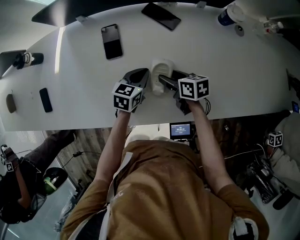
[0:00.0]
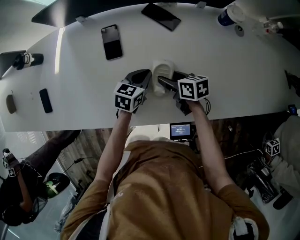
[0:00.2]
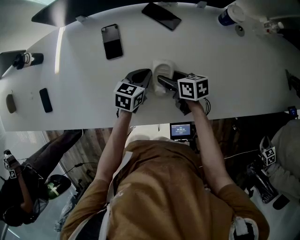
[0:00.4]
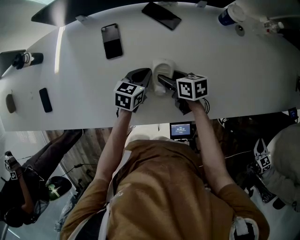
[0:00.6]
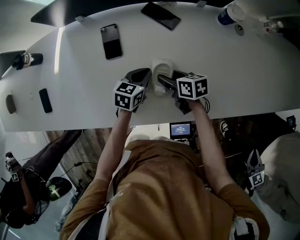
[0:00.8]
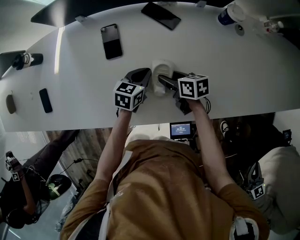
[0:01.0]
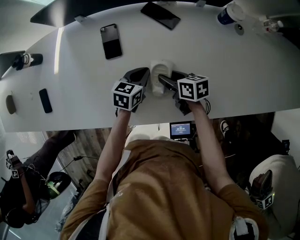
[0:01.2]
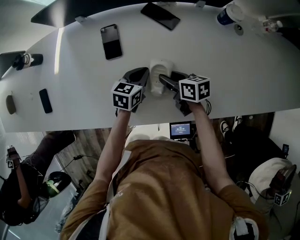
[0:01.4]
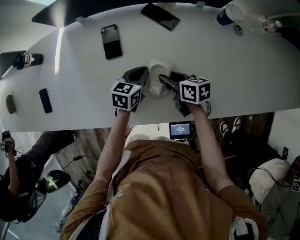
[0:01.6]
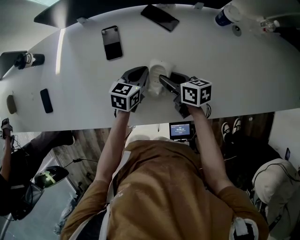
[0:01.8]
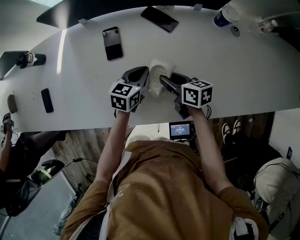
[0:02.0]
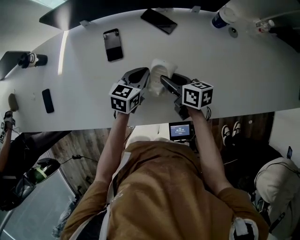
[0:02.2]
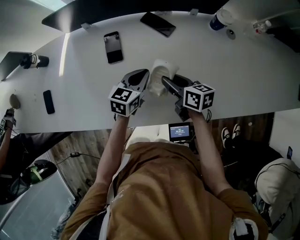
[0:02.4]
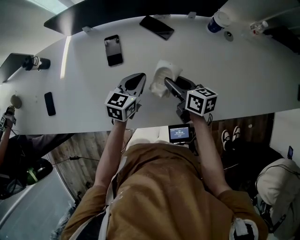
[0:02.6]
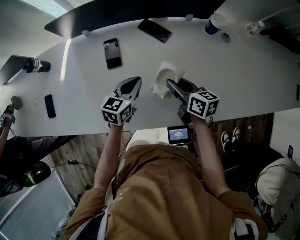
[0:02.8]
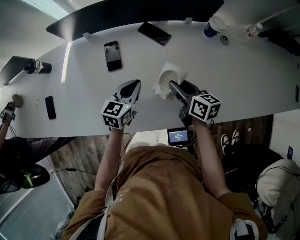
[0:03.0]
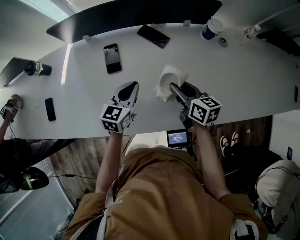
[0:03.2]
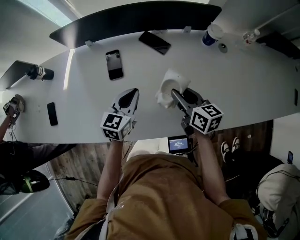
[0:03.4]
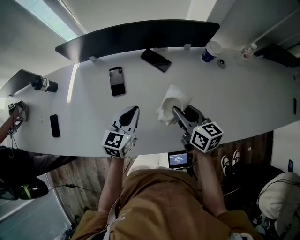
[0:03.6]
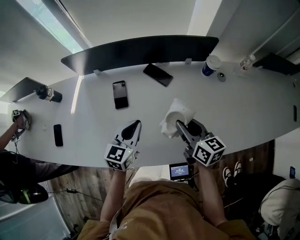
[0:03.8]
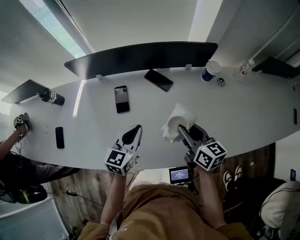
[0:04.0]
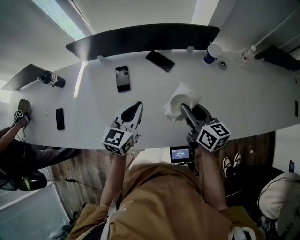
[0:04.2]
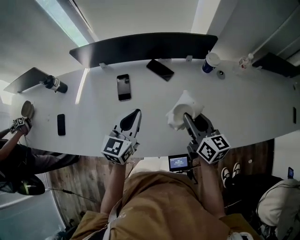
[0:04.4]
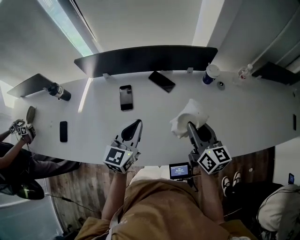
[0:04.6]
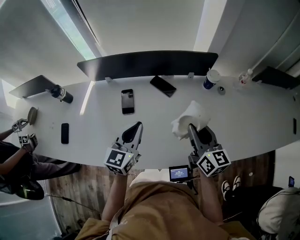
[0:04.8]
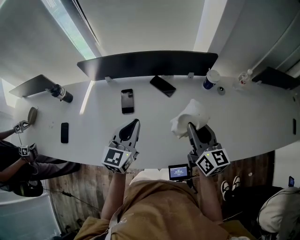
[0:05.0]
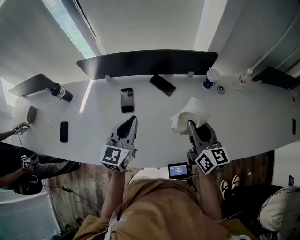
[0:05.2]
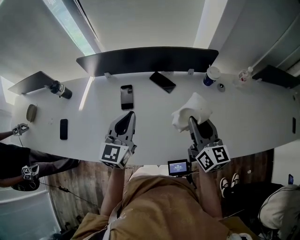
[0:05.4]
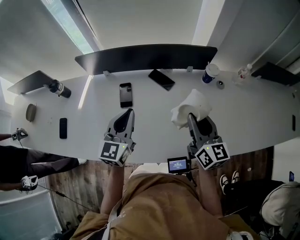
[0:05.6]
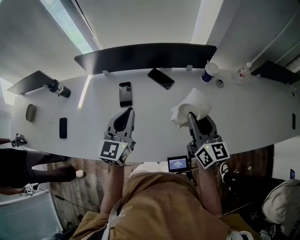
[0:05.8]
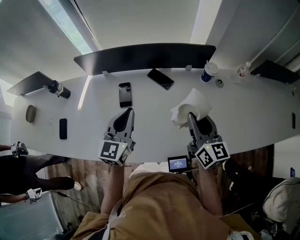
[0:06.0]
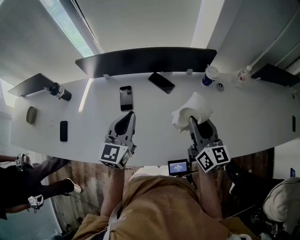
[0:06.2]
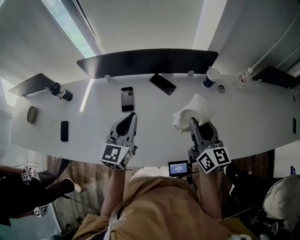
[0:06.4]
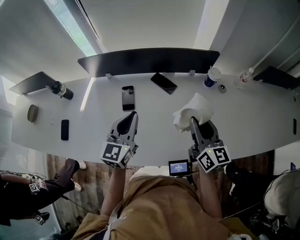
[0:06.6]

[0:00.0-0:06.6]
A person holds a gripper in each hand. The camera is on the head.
0:00.0 to 0:01.6: The right gripper closes its fingers.
0:01.6 to 0:03.2: The left gripper shifts about 10 cm upward; the right gripper heads upward and to the right, covering roughly 10 cm, and swivels approximately 20 degrees.
0:03.2 to 0:05.0: The two grippers go roughly 15 cm upward. The right gripper turns by roughly 30 degrees.
0:05.0 to 0:06.6: The grippers make only small movements.

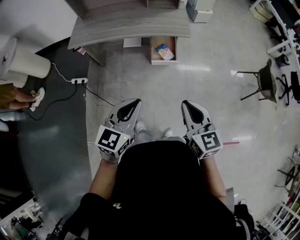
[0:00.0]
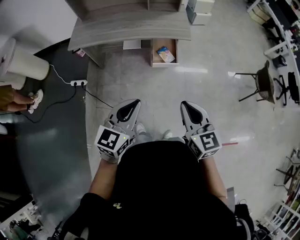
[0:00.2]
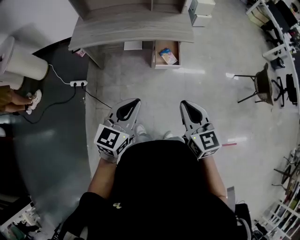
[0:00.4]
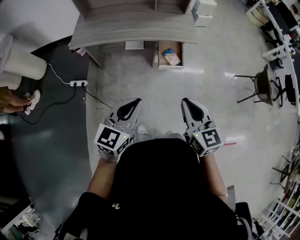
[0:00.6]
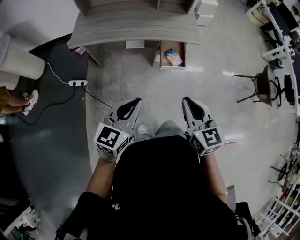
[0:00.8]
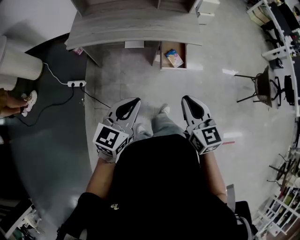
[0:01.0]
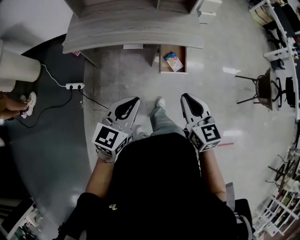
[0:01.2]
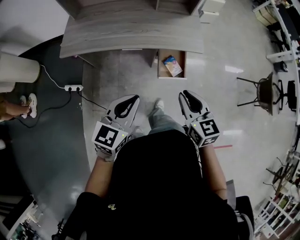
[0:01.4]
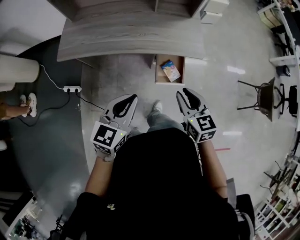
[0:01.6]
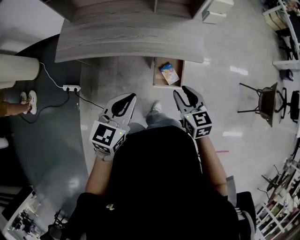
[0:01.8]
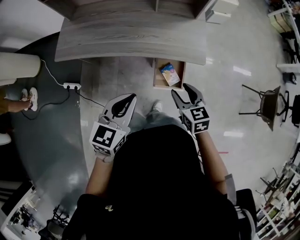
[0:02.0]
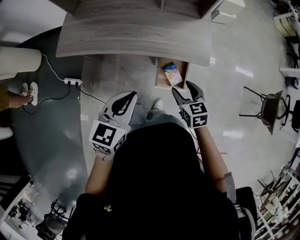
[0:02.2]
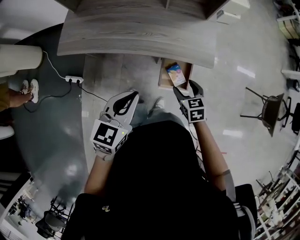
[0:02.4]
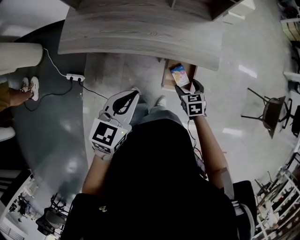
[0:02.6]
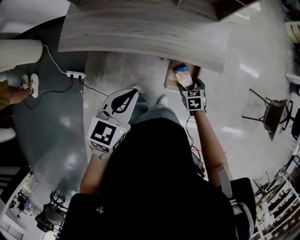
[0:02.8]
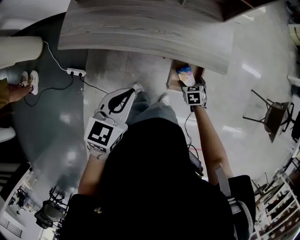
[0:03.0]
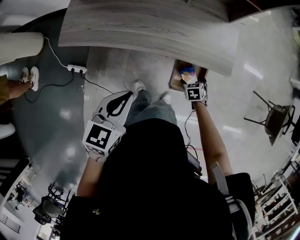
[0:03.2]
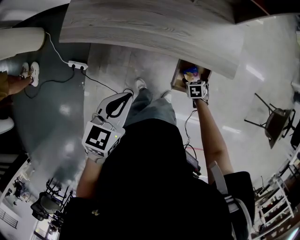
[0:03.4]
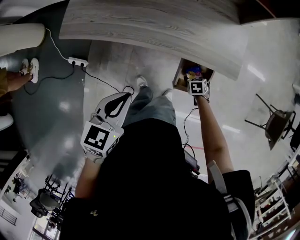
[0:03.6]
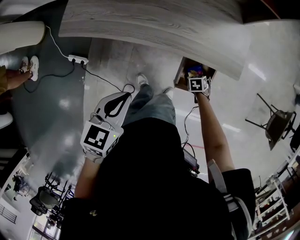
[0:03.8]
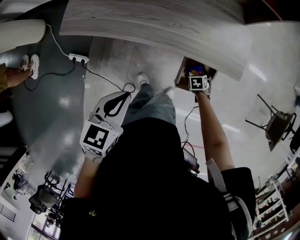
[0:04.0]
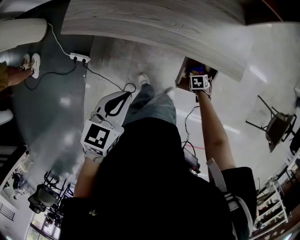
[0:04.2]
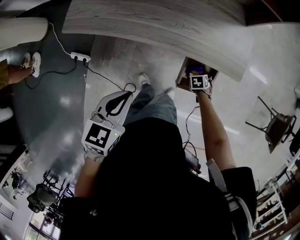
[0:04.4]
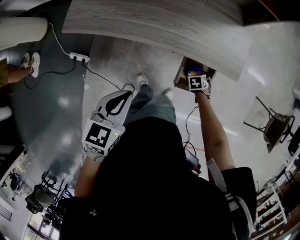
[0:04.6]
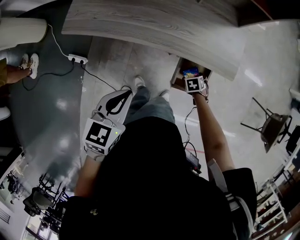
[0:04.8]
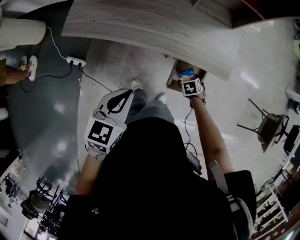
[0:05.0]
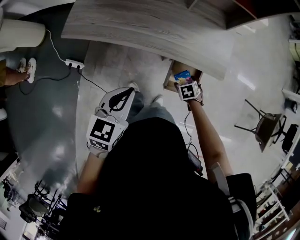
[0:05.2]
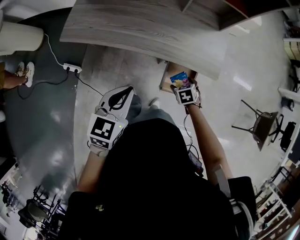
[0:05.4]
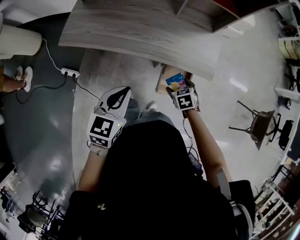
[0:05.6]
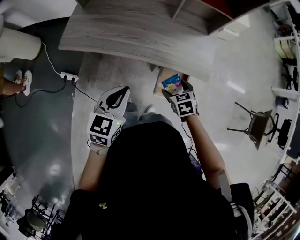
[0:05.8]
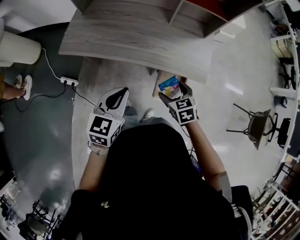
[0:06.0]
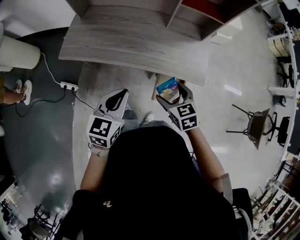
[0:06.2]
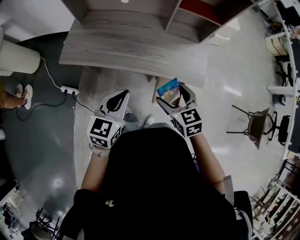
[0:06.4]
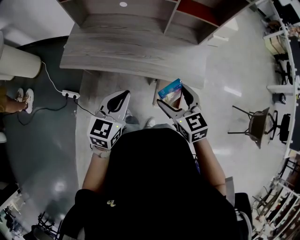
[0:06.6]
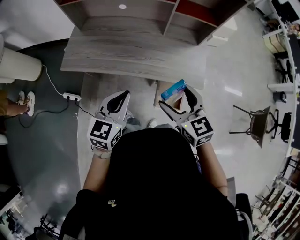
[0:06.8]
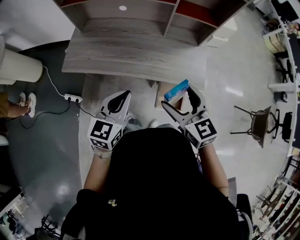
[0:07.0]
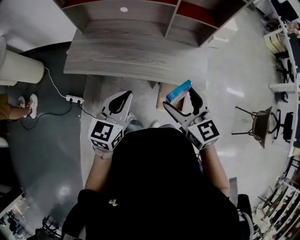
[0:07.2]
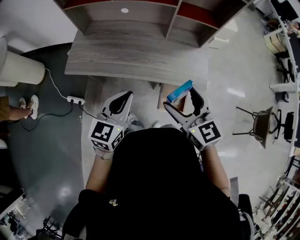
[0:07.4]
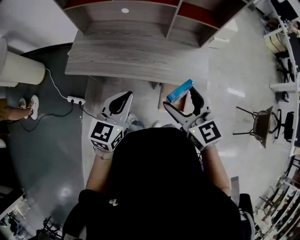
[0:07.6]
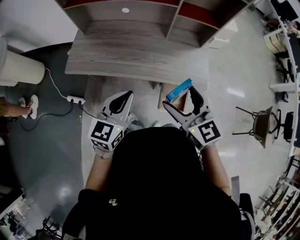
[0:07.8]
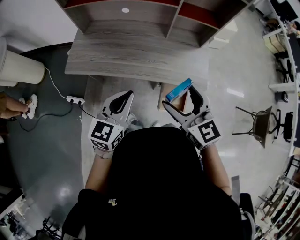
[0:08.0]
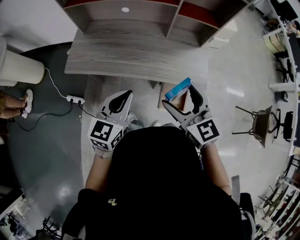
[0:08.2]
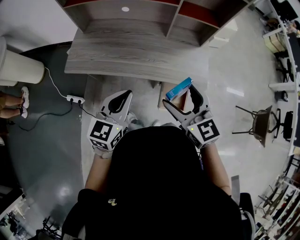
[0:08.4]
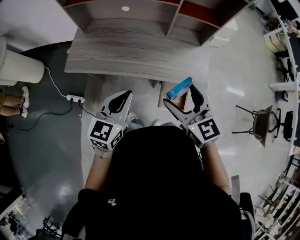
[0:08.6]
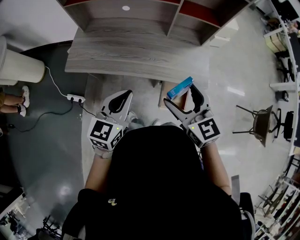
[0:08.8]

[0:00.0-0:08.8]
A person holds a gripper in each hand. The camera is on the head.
0:00.0 to 0:01.4: Both grippers travel together forward and to the left, approximately 25 cm.
0:01.4 to 0:03.0: The left gripper is displaced forward and downward by some 20 cm. The right gripper goes approximately 40 cm downward and forward, points its fingers some 40 degrees further downward, and opens.
0:03.0 to 0:04.4: The right gripper heads downward, covering roughly 10 cm; the left gripper heads downward, covering about 5 cm.
0:04.4 to 0:05.8: The right gripper travels upward by some 25 cm, and rotates some 30 degrees, while the left gripper travels upward by roughly 5 cm.
0:05.8 to 0:07.4: The right gripper travels upward by about 30 cm, and points its fingers about 40 degrees further upward; the left gripper heads upward, covering roughly 5 cm.
0:07.4 to 0:08.8: The two grippers keep their place.

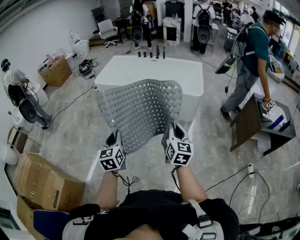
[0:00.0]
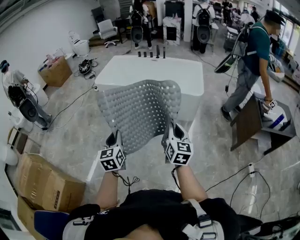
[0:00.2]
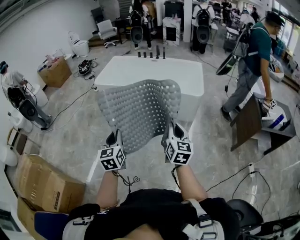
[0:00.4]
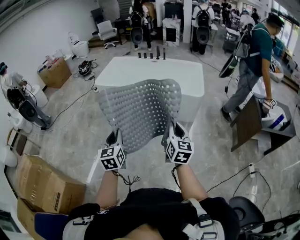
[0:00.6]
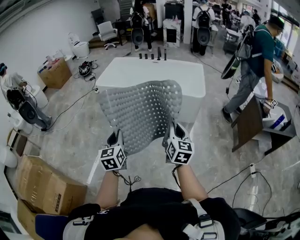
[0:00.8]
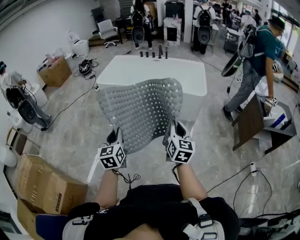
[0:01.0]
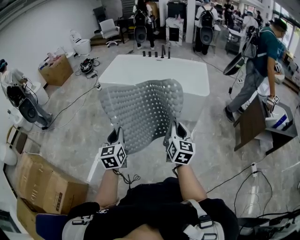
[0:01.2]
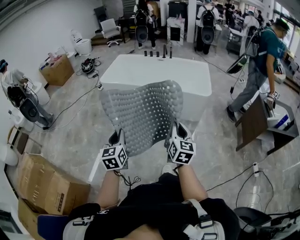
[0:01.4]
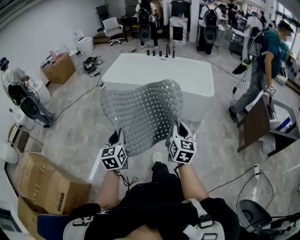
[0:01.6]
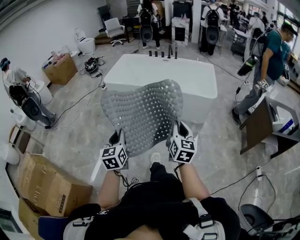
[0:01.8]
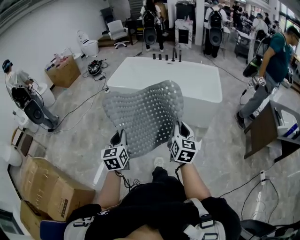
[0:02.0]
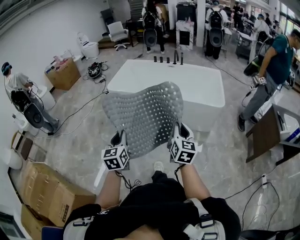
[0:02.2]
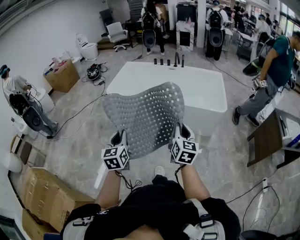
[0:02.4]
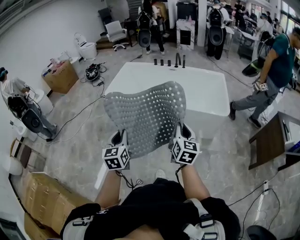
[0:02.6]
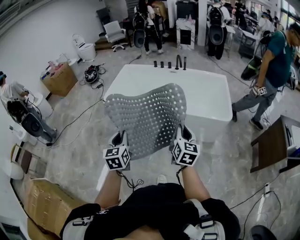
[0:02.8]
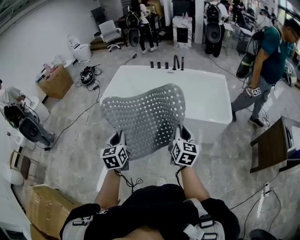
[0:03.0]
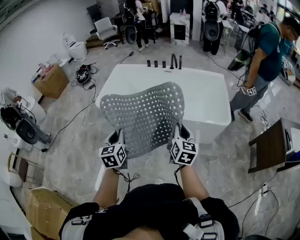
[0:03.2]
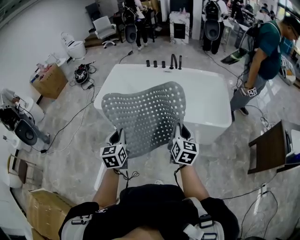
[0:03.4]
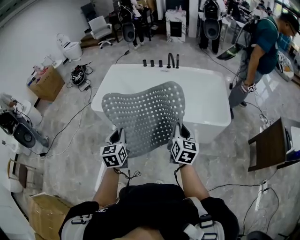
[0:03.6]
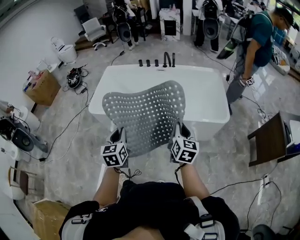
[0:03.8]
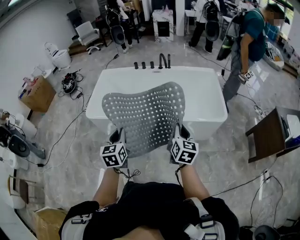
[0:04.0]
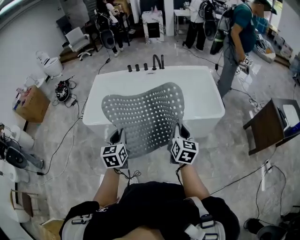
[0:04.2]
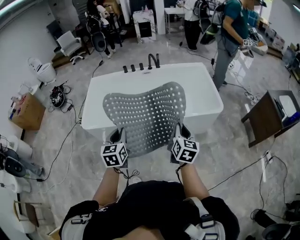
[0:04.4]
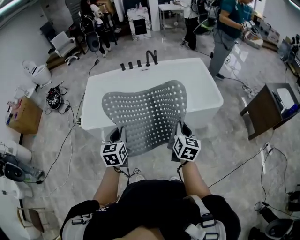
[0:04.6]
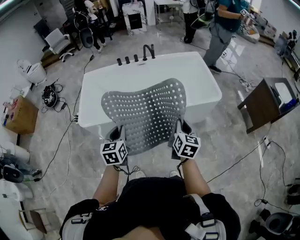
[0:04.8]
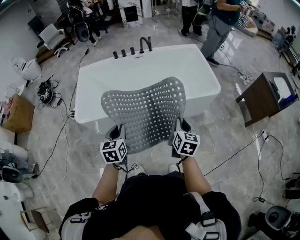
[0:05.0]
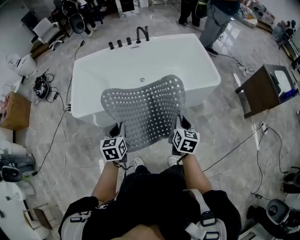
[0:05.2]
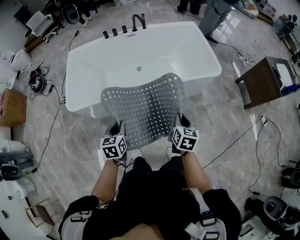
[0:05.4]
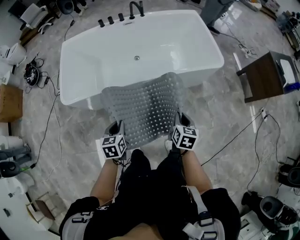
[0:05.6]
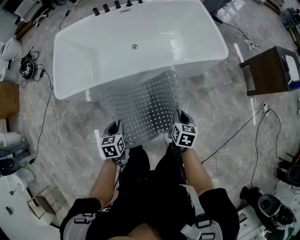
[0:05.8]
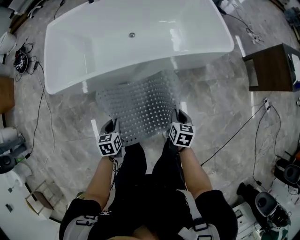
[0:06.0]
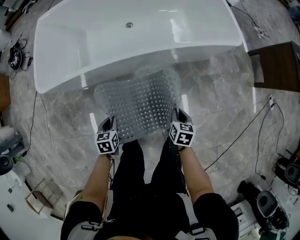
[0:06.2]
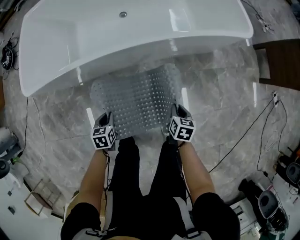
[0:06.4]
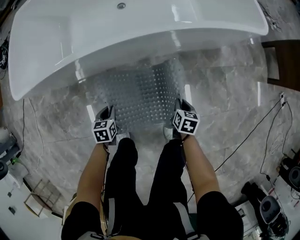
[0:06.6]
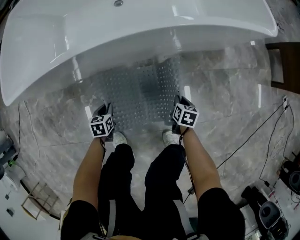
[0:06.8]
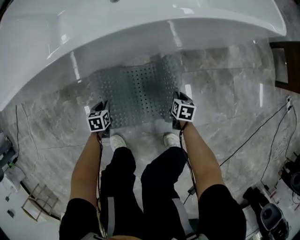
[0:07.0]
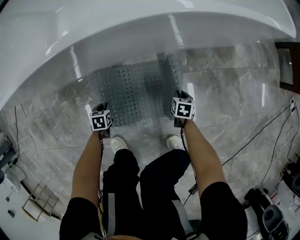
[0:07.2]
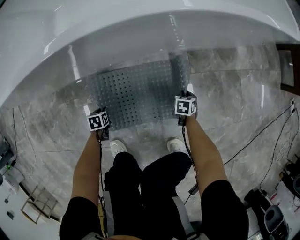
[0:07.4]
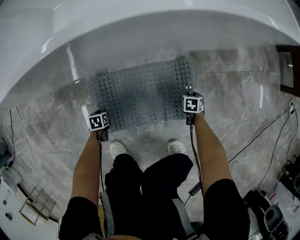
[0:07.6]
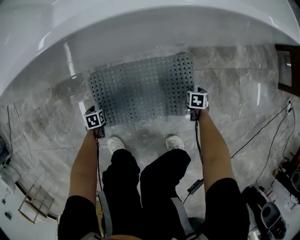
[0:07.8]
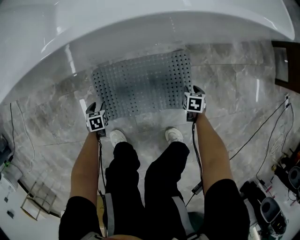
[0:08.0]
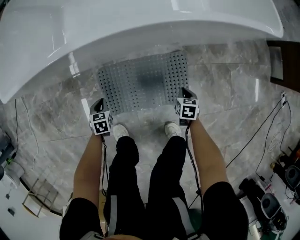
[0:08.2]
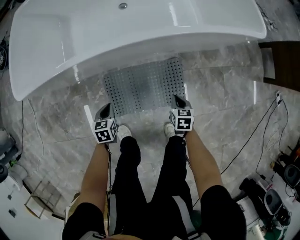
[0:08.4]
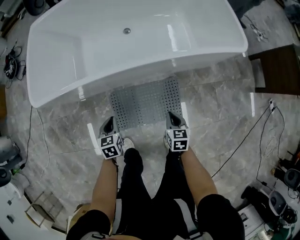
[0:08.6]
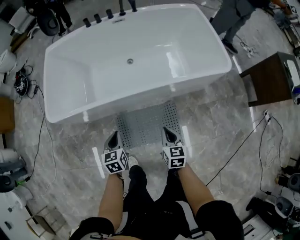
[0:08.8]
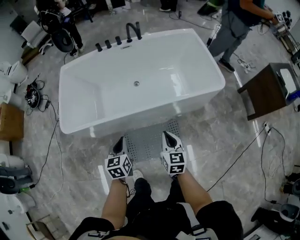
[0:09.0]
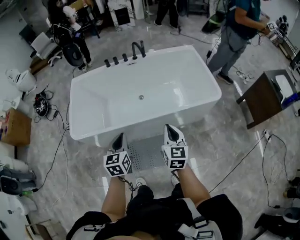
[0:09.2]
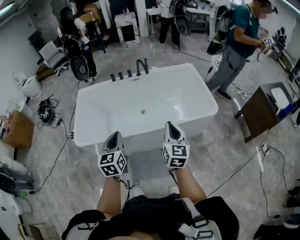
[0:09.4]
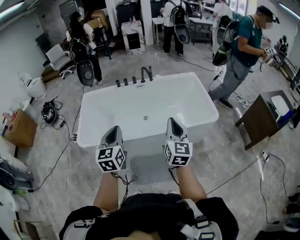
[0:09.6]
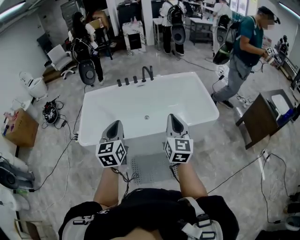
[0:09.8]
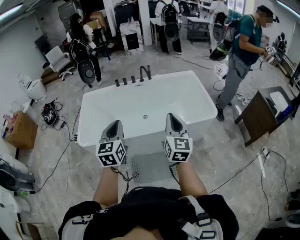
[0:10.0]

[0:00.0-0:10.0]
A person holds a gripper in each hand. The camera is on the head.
0:00.0 to 0:01.4: Both grippers travel together to the left, some 10 cm.
0:01.4 to 0:02.8: Both grippers travel together forward, approximately 35 cm.
0:02.8 to 0:04.2: The left gripper moves forward, about 25 cm; the right gripper heads forward, covering approximately 15 cm.
0:04.2 to 0:05.8: The grippers both shift downward by approximately 25 cm. The right gripper tilts its fingers roughly 30 degrees downward. The left gripper turns by roughly 30 degrees.
0:05.8 to 0:07.2: Both grippers move downward, roughly 60 cm. The right gripper rotates about 20 degrees. Meanwhile the left gripper rotates some 20 degrees.
0:07.2 to 0:08.6: The grippers both shift upward by roughly 40 cm. The left gripper turns by about 20 degrees, and opens and closes again. The right gripper rotates about 20 degrees, and opens, then closes once more.
0:08.6 to 0:10.0: The two grippers go roughly 60 cm upward. The right gripper points its fingers about 50 degrees further upward. The left gripper angles its fingers upward, by about 40 degrees.
